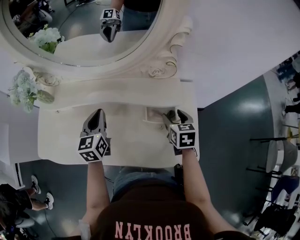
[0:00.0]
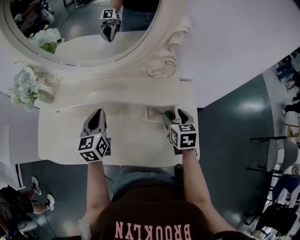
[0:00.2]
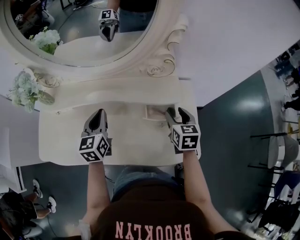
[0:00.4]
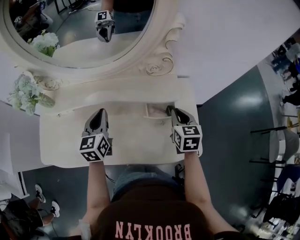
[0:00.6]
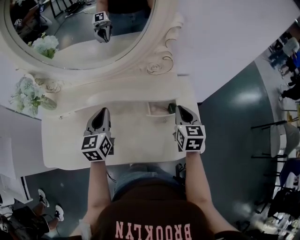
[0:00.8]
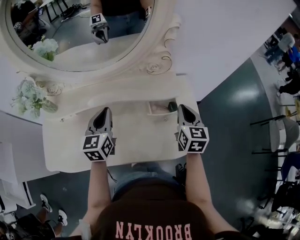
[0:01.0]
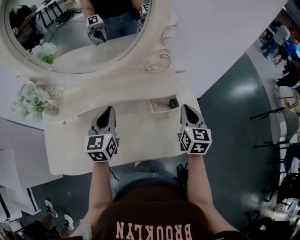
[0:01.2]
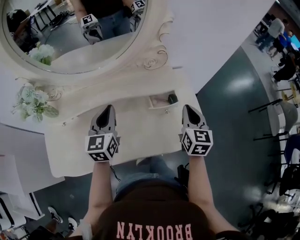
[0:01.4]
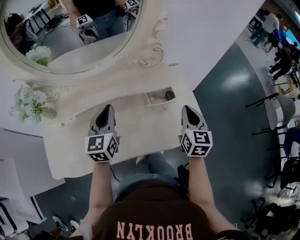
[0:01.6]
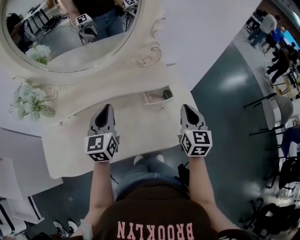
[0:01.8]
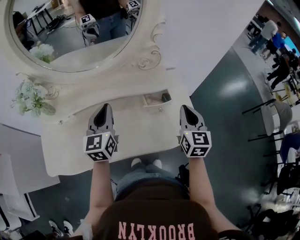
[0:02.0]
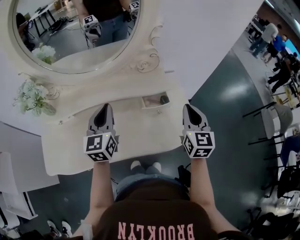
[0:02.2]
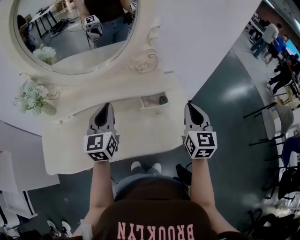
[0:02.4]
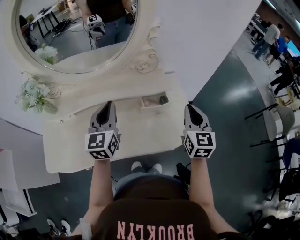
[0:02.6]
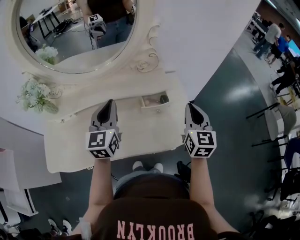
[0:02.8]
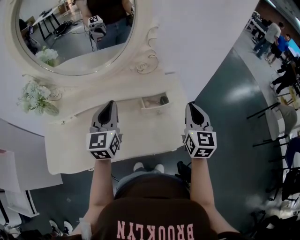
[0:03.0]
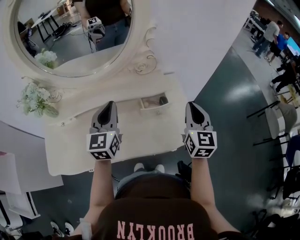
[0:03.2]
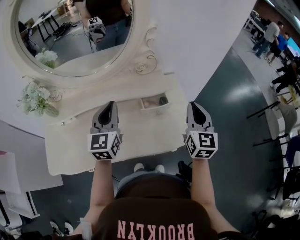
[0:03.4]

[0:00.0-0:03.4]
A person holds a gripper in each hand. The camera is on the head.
0:00.0 to 0:01.6: The left gripper goes some 5 cm upward, and turns by roughly 20 degrees; the right gripper is displaced backward and upward by roughly 15 cm, turns by roughly 30 degrees, and closes.
0:01.6 to 0:03.4: The right gripper moves upward, some 10 cm. Meanwhile the left gripper shifts approximately 10 cm upward and to the right.

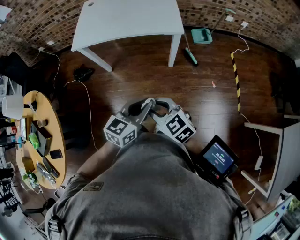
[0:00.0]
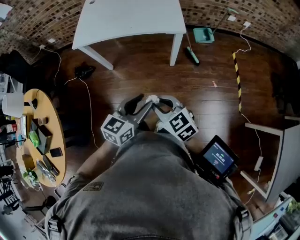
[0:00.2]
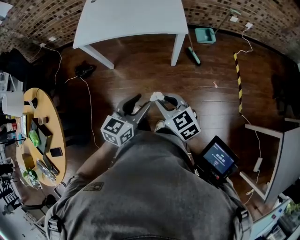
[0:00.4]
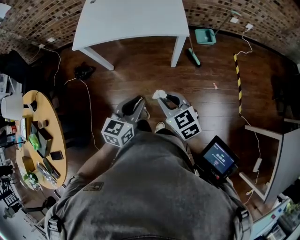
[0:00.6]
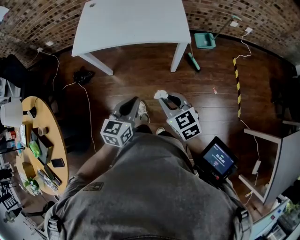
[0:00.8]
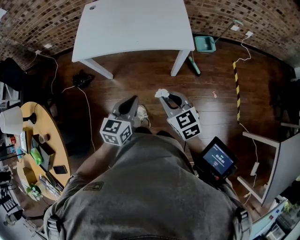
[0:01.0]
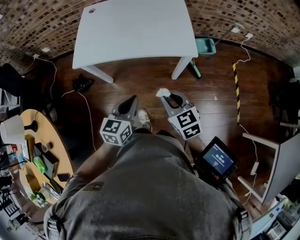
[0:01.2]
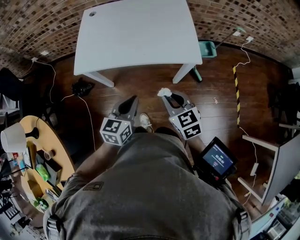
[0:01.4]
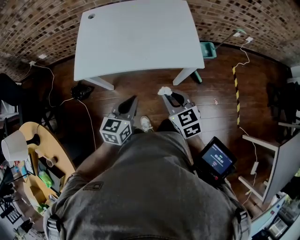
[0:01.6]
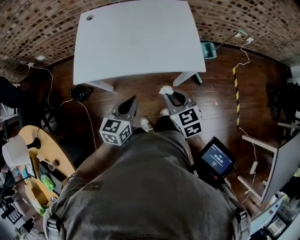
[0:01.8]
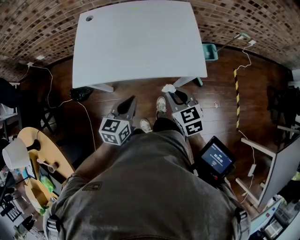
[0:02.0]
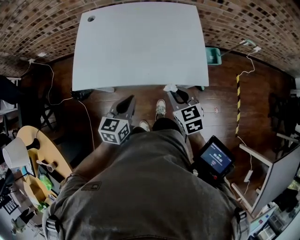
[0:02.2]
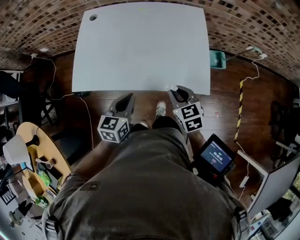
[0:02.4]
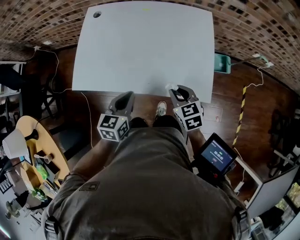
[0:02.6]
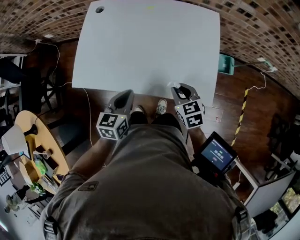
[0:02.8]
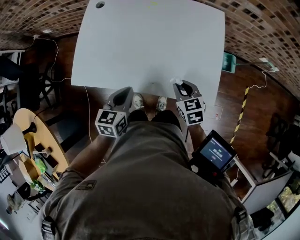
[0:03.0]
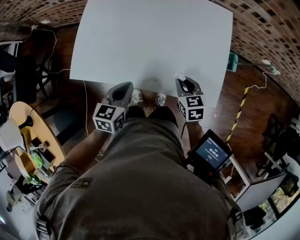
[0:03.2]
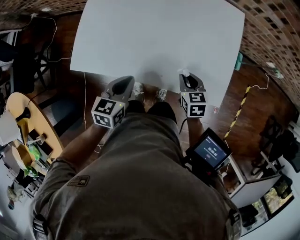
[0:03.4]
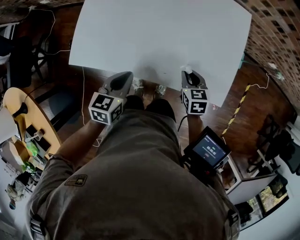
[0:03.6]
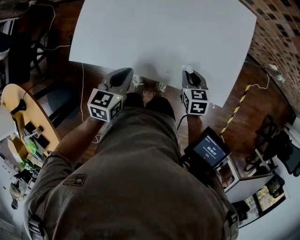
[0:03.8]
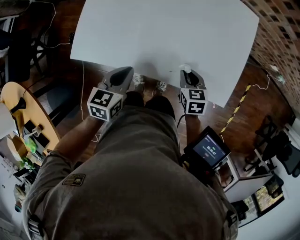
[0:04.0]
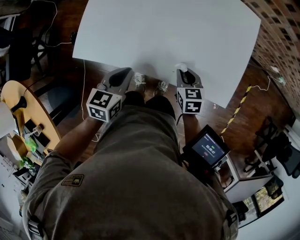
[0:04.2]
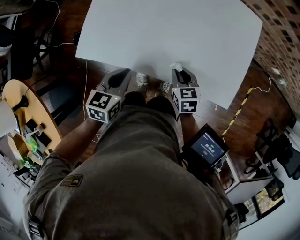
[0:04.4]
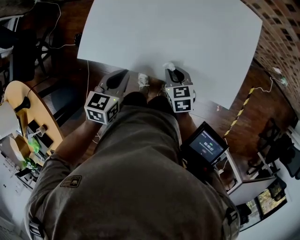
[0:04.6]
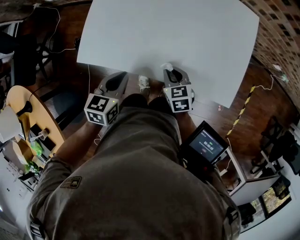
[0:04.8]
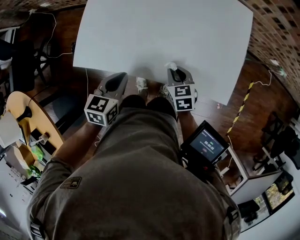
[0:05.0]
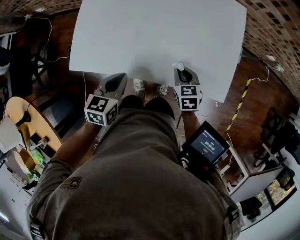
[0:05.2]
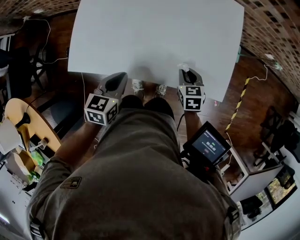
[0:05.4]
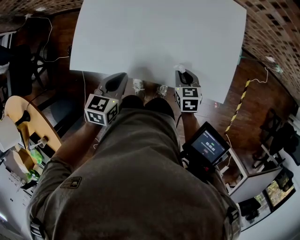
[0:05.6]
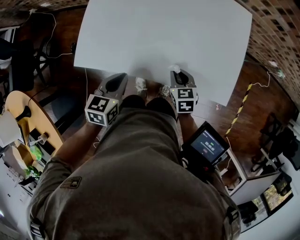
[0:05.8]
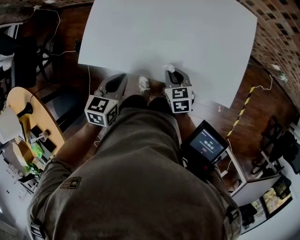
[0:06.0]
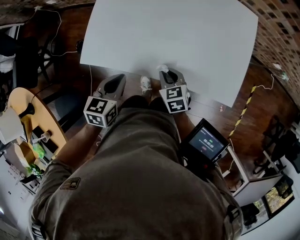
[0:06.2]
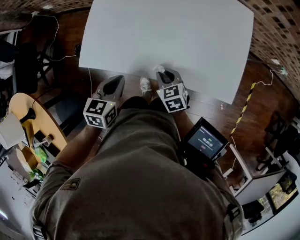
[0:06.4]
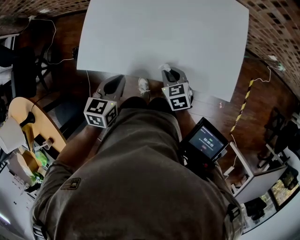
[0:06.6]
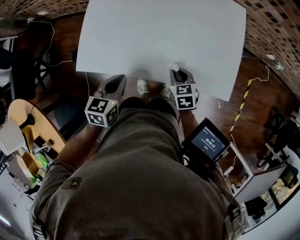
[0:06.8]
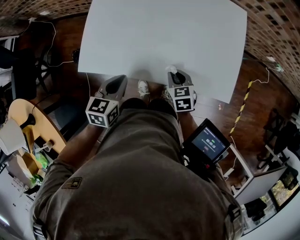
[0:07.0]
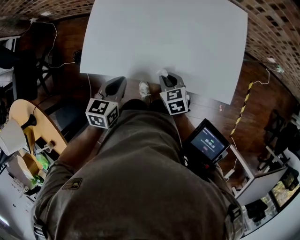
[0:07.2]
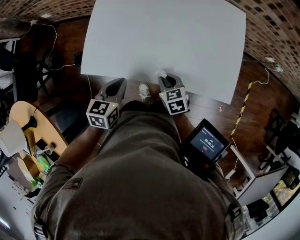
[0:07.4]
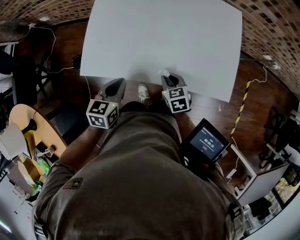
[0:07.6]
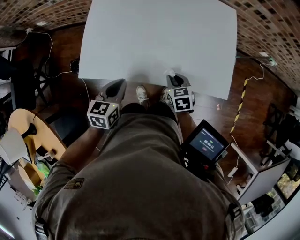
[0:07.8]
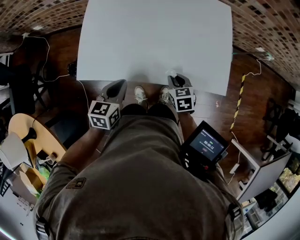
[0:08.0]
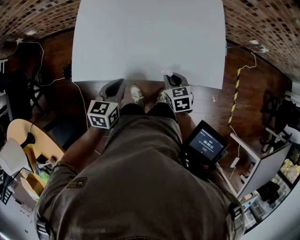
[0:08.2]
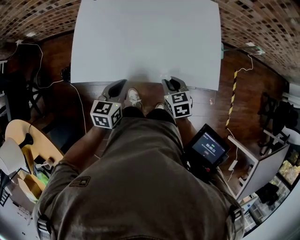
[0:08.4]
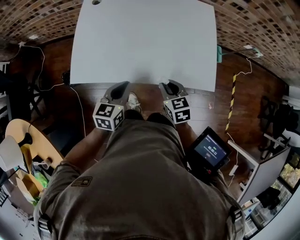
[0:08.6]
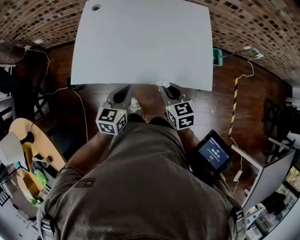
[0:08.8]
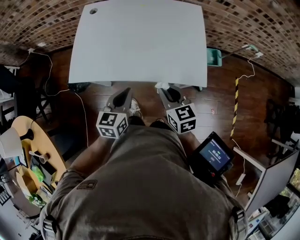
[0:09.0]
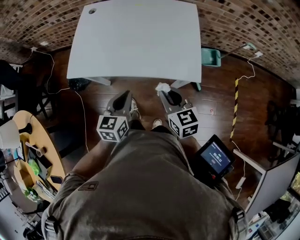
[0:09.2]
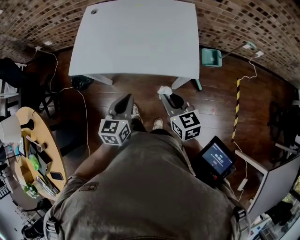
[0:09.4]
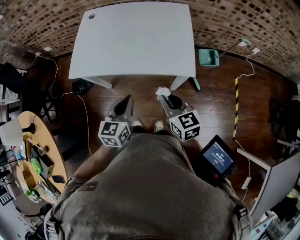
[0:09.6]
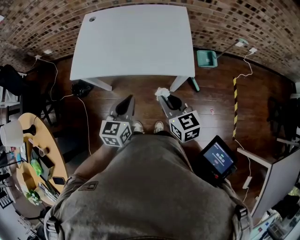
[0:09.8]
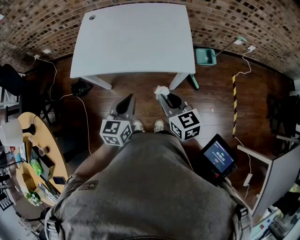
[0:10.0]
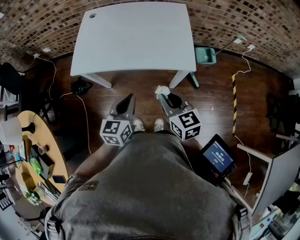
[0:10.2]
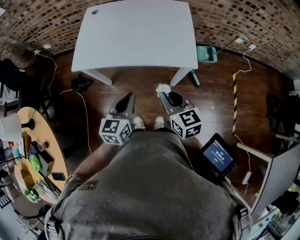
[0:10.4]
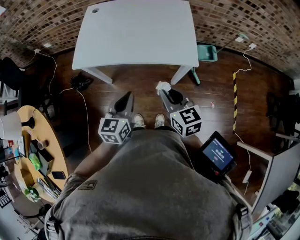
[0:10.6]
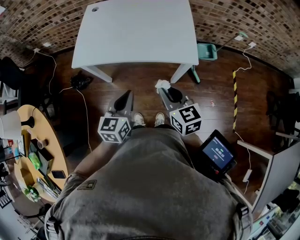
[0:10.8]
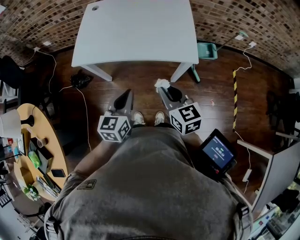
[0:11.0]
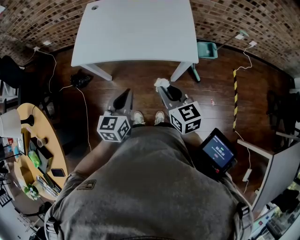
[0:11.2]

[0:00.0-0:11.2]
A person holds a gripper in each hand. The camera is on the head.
0:00.0 to 0:01.6: The left gripper heads forward and to the left, covering approximately 30 cm, and opens, then closes once more; the right gripper shifts approximately 30 cm forward, and rotates approximately 20 degrees.
0:01.6 to 0:03.2: The left gripper is displaced forward by roughly 20 cm, while the right gripper moves forward and downward, approximately 25 cm.
0:03.2 to 0:04.8: The grippers both shift to the left by roughly 10 cm.
0:04.8 to 0:06.4: The right gripper goes to the right and returns, roughly 15 cm each way.
0:06.4 to 0:08.0: The right gripper goes left and right, roughly 10 cm each way, reversing 2 times.
0:08.0 to 0:09.6: The left gripper goes about 25 cm to the right, backward and upward. The right gripper travels upward, backward and to the right by approximately 30 cm, and rotates roughly 30 degrees.
0:09.6 to 0:11.2: The right gripper moves about 5 cm; the left gripper ends up some 5 cm from where it was.

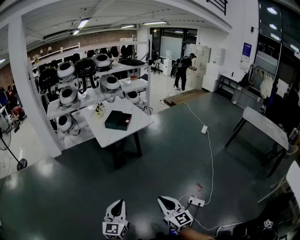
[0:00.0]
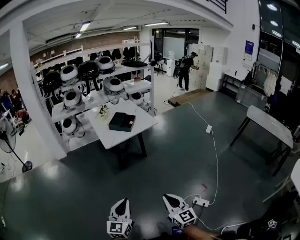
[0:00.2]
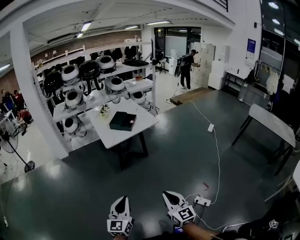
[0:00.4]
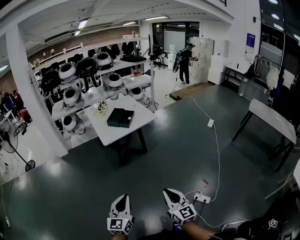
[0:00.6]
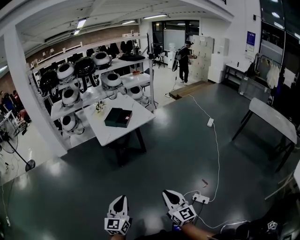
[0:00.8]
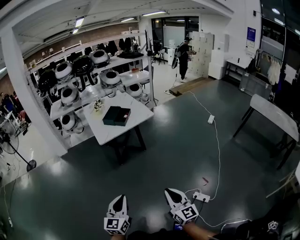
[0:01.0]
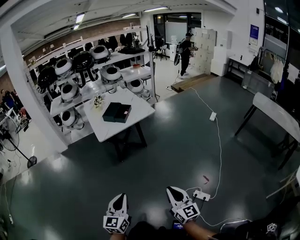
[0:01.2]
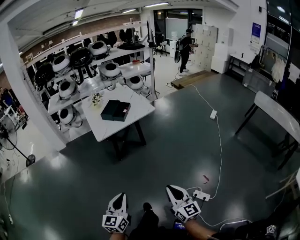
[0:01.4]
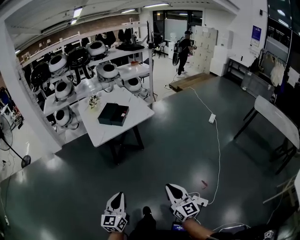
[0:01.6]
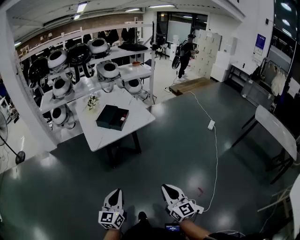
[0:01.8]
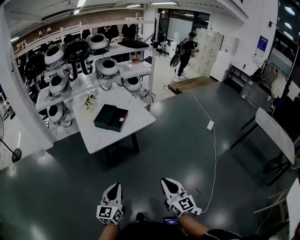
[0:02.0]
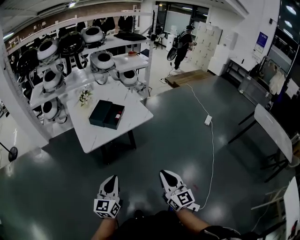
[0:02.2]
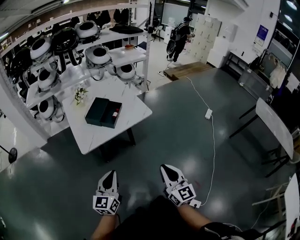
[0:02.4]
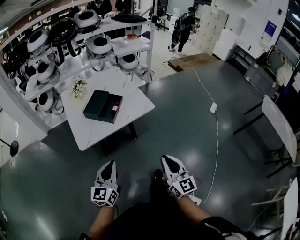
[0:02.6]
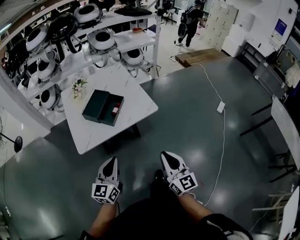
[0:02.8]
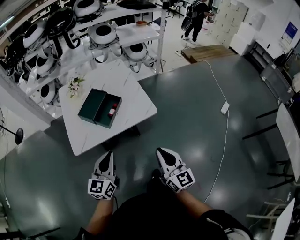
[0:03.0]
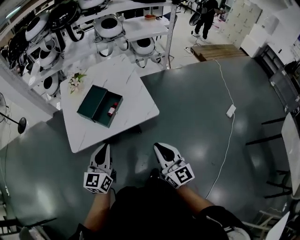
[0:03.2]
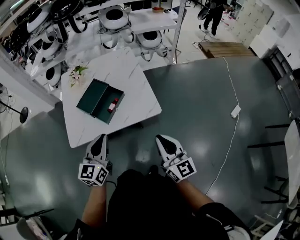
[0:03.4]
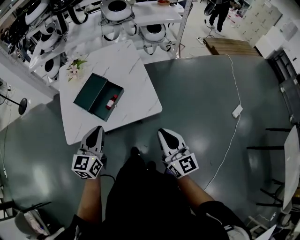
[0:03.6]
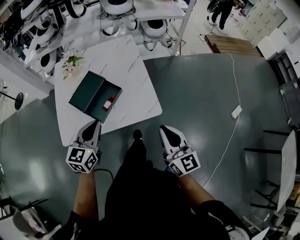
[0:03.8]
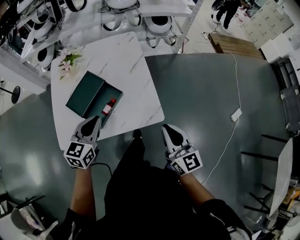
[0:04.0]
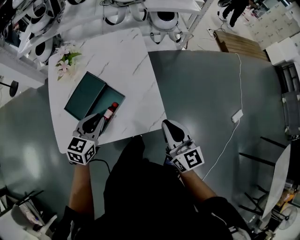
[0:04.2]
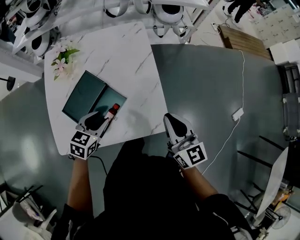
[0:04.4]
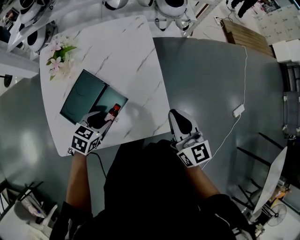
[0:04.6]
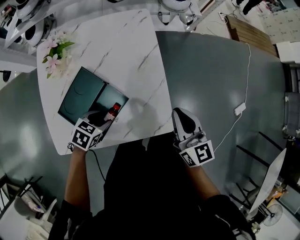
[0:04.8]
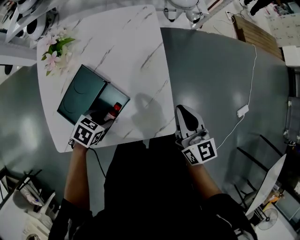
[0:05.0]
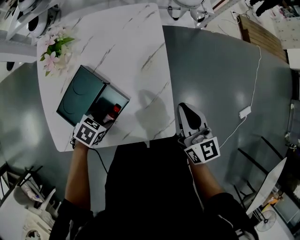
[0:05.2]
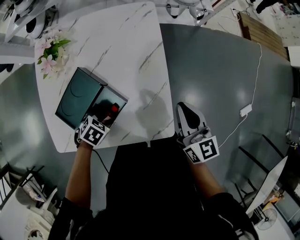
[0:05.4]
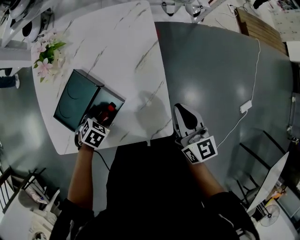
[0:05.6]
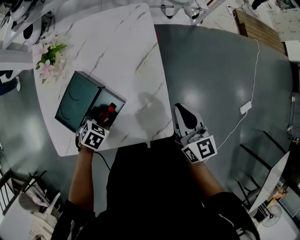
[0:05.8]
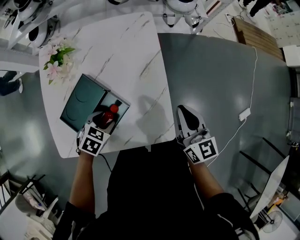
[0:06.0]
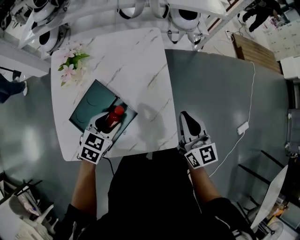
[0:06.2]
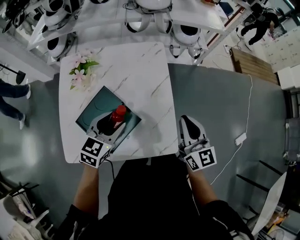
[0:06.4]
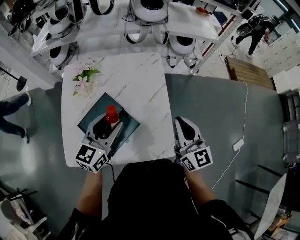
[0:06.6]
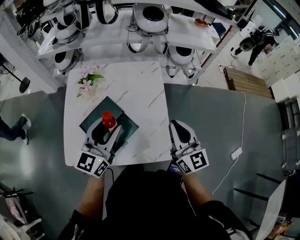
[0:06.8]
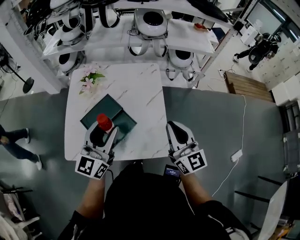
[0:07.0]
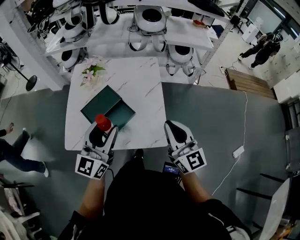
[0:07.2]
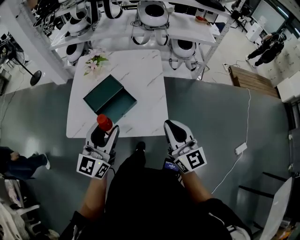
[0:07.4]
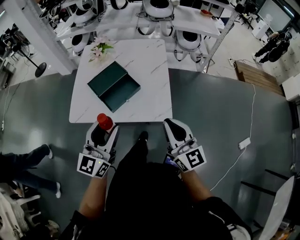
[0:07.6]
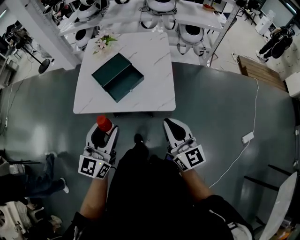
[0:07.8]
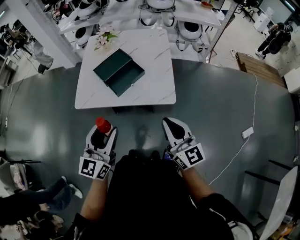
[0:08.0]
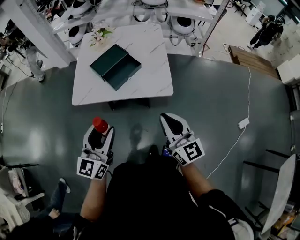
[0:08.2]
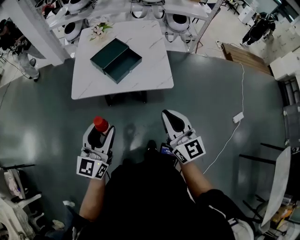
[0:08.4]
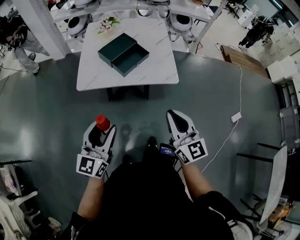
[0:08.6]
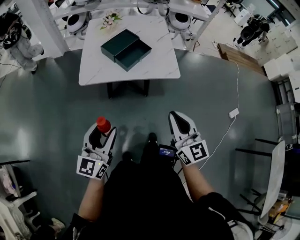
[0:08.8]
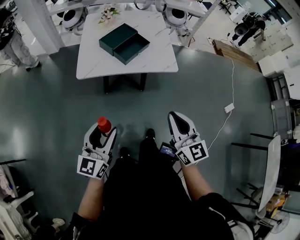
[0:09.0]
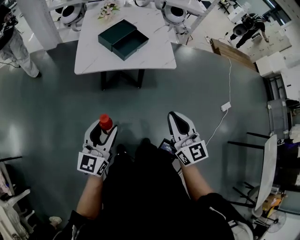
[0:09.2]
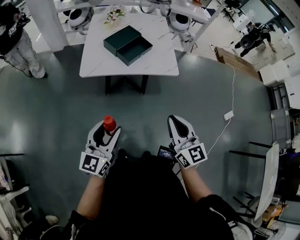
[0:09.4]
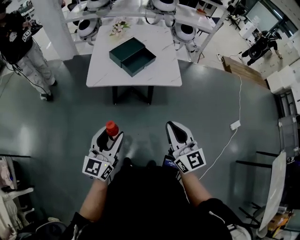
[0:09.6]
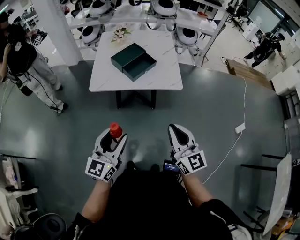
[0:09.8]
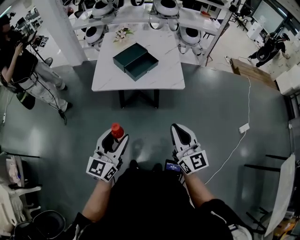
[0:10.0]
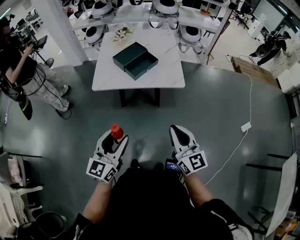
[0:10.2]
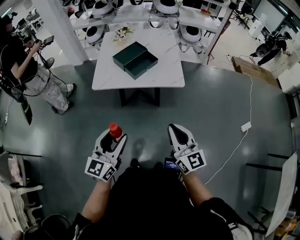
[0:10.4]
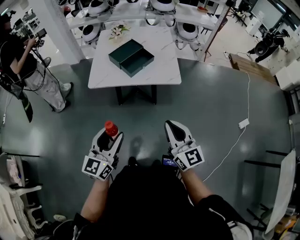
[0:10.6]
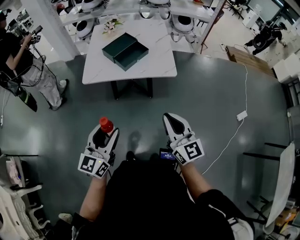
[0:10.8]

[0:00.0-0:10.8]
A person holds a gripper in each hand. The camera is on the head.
0:00.0 to 0:01.6: Both grippers travel together forward and to the right, about 20 cm.
0:01.6 to 0:03.0: The two grippers travel together, forward, roughly 50 cm.
0:03.0 to 0:04.6: The left gripper moves forward and downward, roughly 40 cm, tilts its fingers approximately 50 degrees downward, and opens its fingers, while the right gripper shifts some 40 cm forward.
0:04.6 to 0:06.2: The right gripper changes place by roughly 5 cm. Meanwhile the left gripper reaches some 10 cm downward, then returns.
0:06.2 to 0:07.8: The left gripper is displaced backward and upward by approximately 35 cm, and angles its fingers upward, by some 50 degrees; the right gripper moves backward, roughly 30 cm, and changes its angle by roughly 20 degrees.
0:07.8 to 0:09.2: Both grippers travel together backward and to the left, some 25 cm.
0:09.2 to 0:10.8: The grippers both shift to the right by roughly 5 cm.
